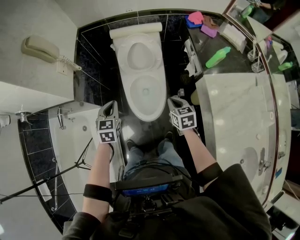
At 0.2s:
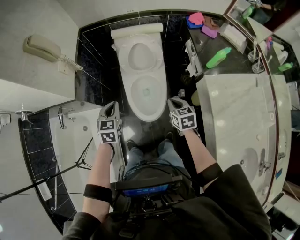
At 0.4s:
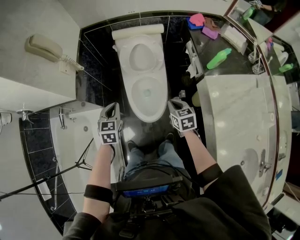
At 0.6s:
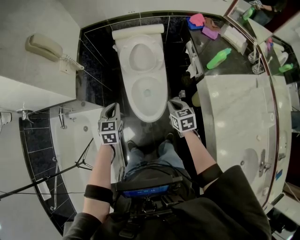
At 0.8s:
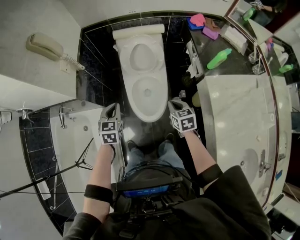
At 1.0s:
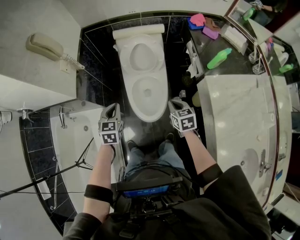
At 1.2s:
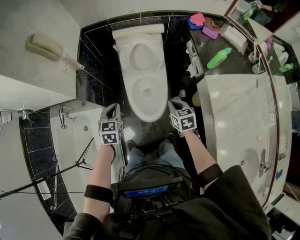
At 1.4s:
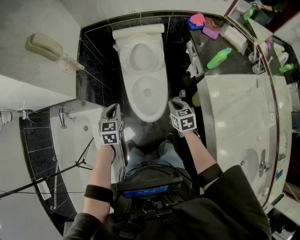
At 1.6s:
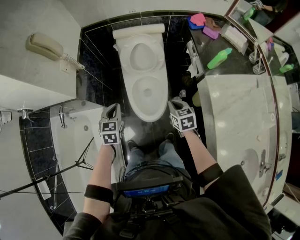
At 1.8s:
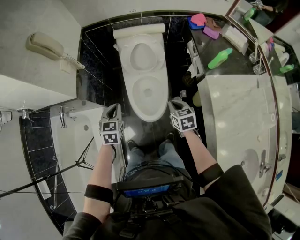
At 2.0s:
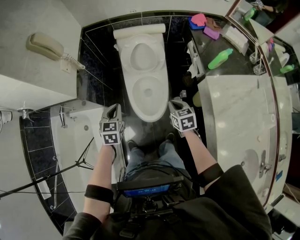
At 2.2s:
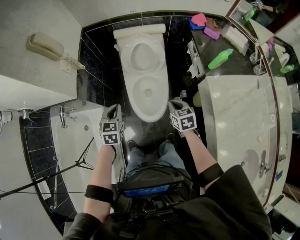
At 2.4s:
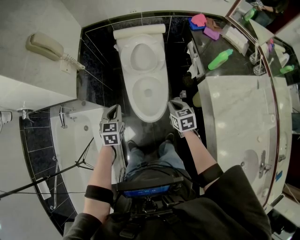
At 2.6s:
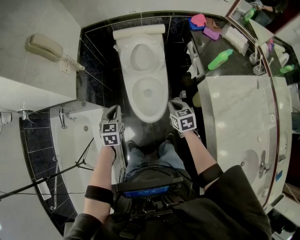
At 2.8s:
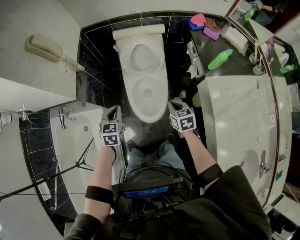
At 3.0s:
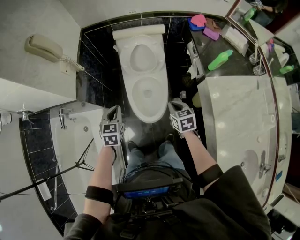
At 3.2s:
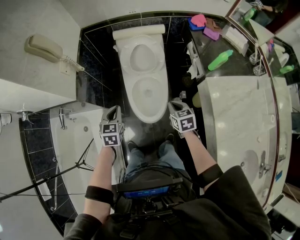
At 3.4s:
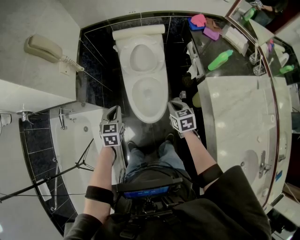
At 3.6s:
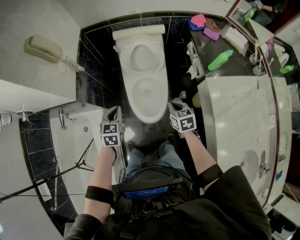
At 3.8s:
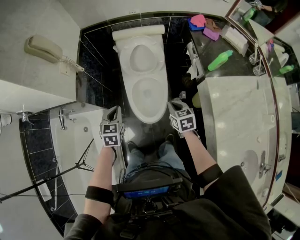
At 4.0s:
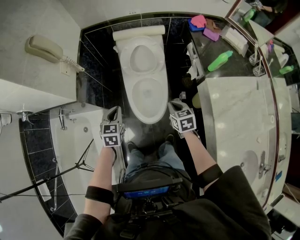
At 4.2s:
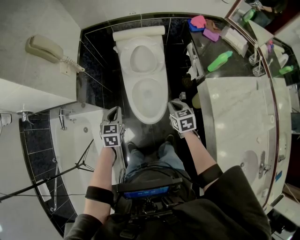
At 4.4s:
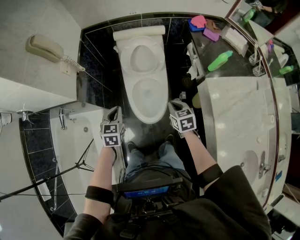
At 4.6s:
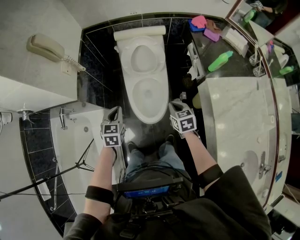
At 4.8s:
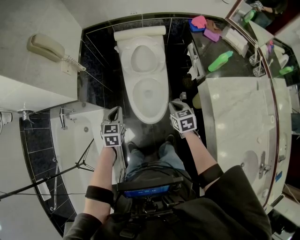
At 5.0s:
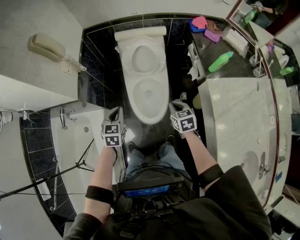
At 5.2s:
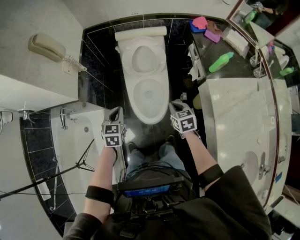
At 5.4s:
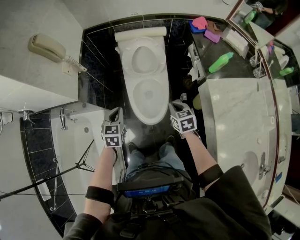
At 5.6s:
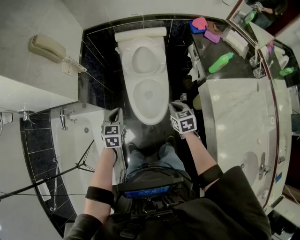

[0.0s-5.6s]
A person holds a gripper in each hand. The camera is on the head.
0.0s to 1.4s: There are only small adjustments of the grippers.
1.4s to 2.8s: Both grippers stay put.
2.8s to 5.6s: The two grippers keep their place.

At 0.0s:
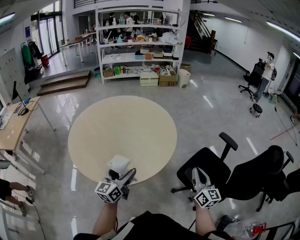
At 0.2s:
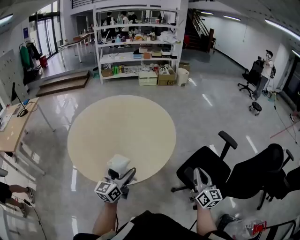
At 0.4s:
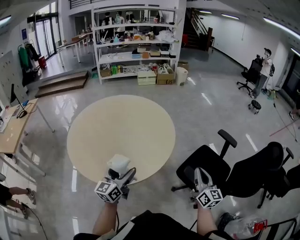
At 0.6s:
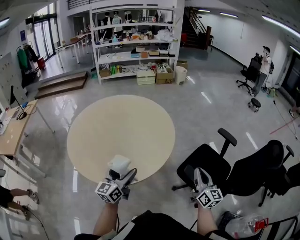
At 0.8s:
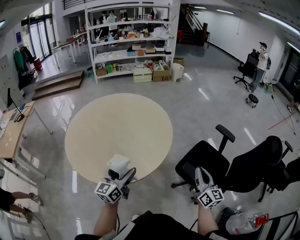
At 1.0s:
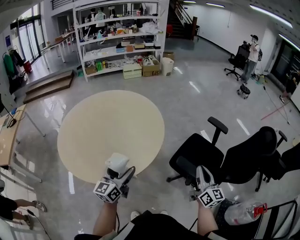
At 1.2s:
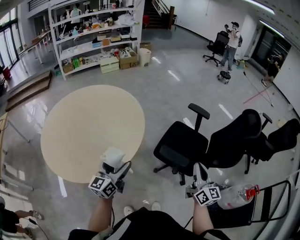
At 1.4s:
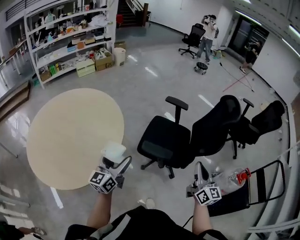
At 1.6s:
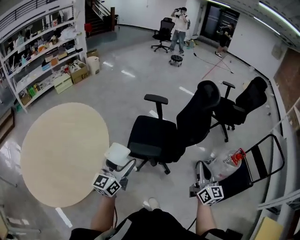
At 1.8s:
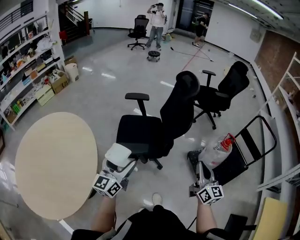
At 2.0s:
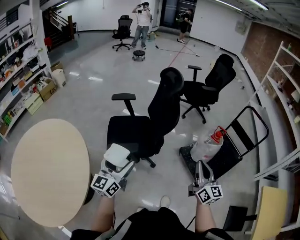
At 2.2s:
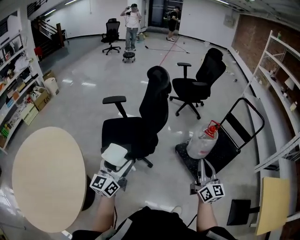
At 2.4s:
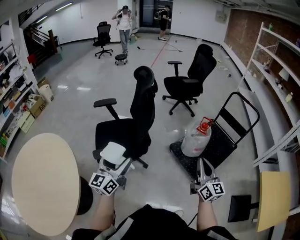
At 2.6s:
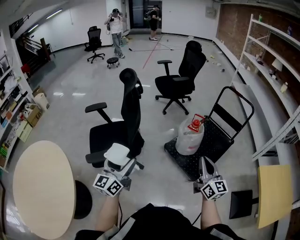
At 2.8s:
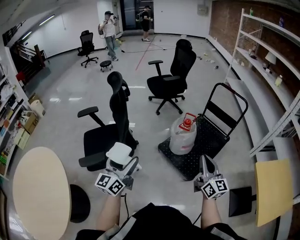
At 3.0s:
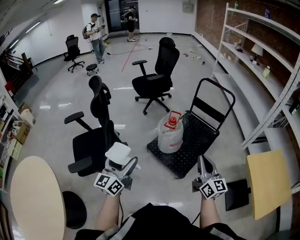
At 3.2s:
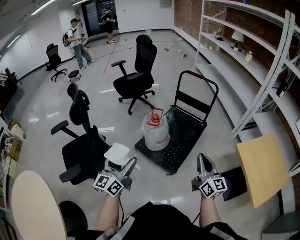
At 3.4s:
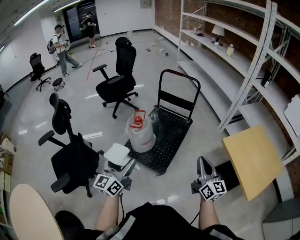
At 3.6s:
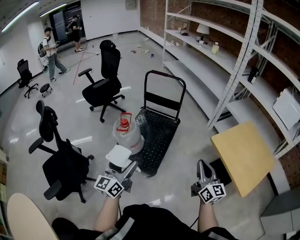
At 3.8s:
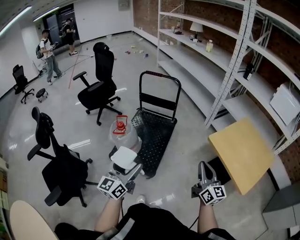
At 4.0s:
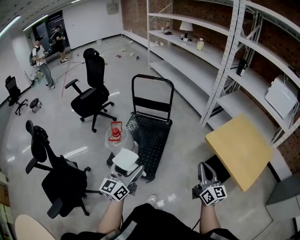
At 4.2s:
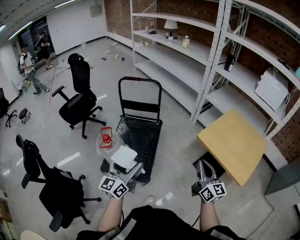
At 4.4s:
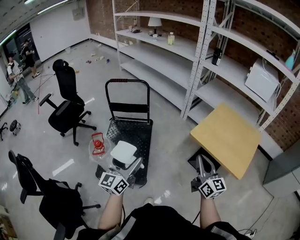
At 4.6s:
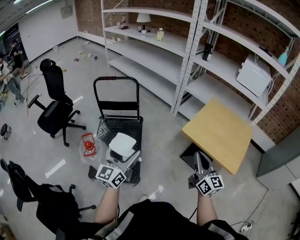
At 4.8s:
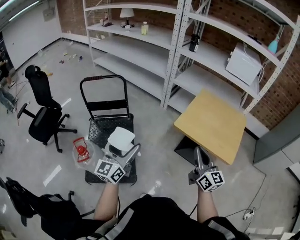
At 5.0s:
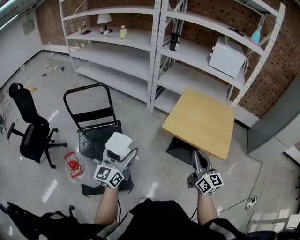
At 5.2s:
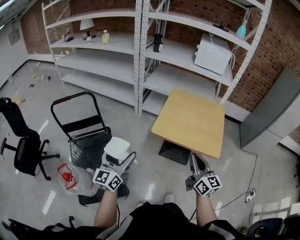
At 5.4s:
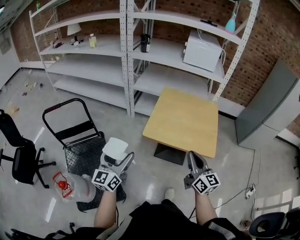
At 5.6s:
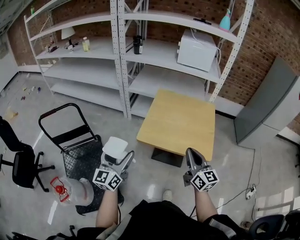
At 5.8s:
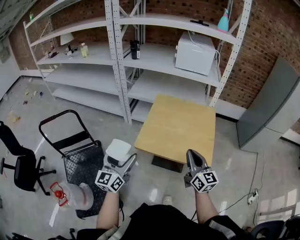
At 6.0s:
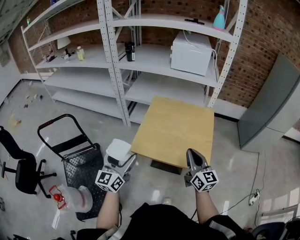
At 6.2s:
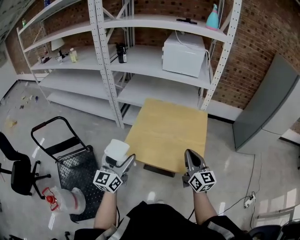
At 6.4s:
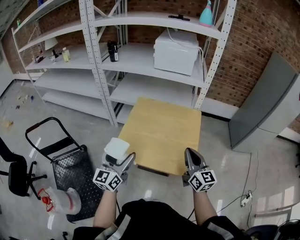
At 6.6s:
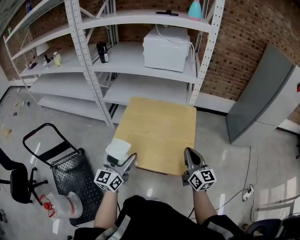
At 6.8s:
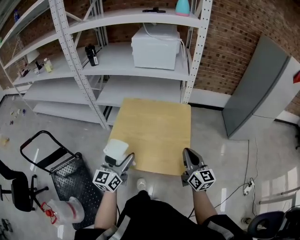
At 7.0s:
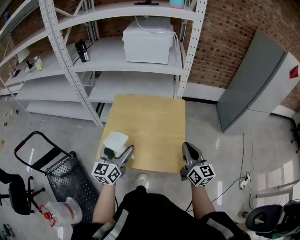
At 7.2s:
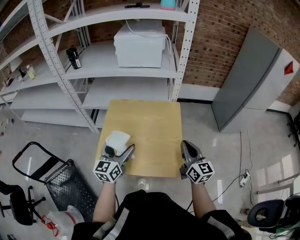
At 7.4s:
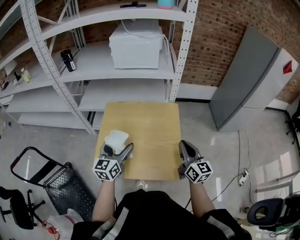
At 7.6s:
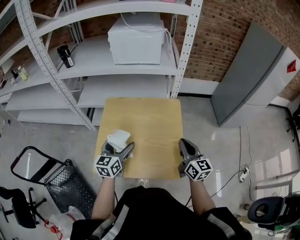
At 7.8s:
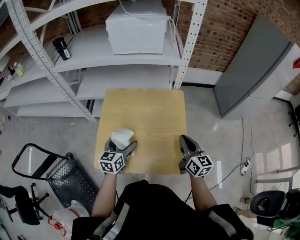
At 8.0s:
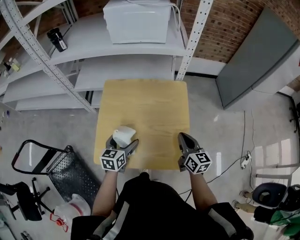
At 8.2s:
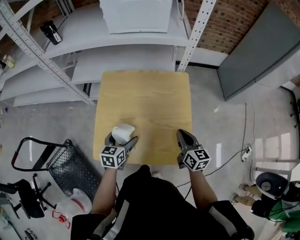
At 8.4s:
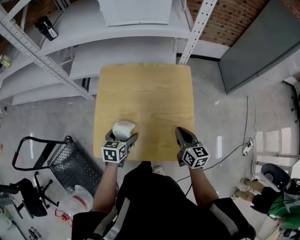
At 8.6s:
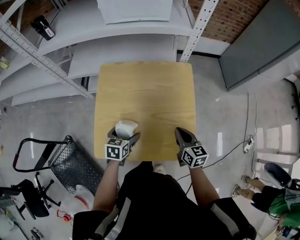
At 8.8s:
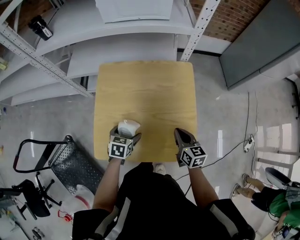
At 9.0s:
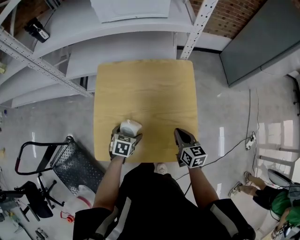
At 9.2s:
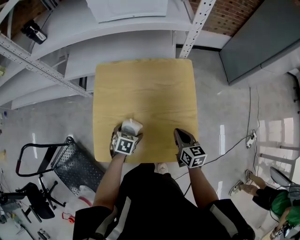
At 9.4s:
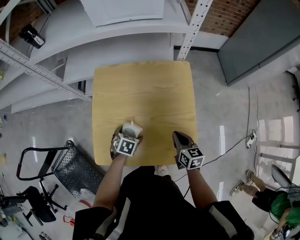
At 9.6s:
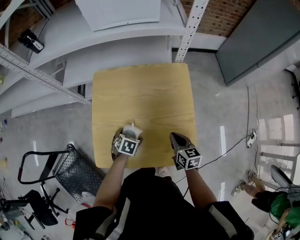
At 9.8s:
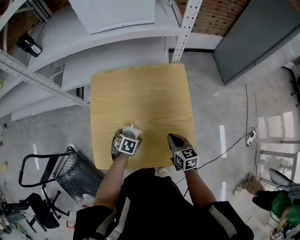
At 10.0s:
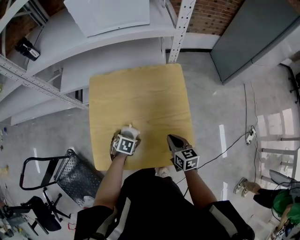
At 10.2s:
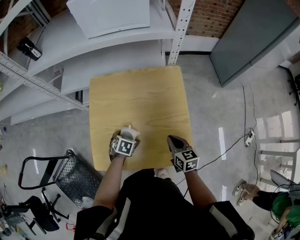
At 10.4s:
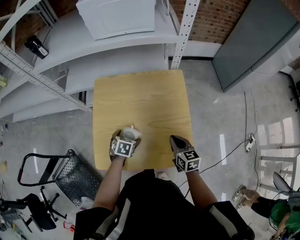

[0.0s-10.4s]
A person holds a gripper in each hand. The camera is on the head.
0.0s to 1.4s: The right gripper shifts by roughly 25 cm, and turns by roughly 30 degrees. The left gripper ends up roughly 20 cm from where it was, and changes its angle by approximately 30 degrees.
1.4s to 3.0s: The pair of grippers is taken some 50 cm. The right gripper changes its angle by some 50 degrees. The left gripper swivels roughly 50 degrees.
3.0s to 4.4s: The right gripper moves approximately 30 cm, and swivels about 40 degrees. The left gripper moves approximately 40 cm, and swivels some 40 degrees.
4.4s to 6.0s: The right gripper ends up roughly 30 cm from where it was, and changes its angle by roughly 30 degrees; the left gripper ends up about 40 cm from where it was, and swivels about 30 degrees.
6.0s to 7.4s: The right gripper goes about 20 cm to the right and forward, while the left gripper shifts some 30 cm forward and to the right, and swivels about 20 degrees.
7.4s to 9.0s: Both grippers travel together downward, some 25 cm. The left gripper angles its fingers downward, by roughly 50 degrees. Meanwhile the right gripper changes its angle by about 30 degrees.
9.0s to 10.4s: The grippers move only a little.

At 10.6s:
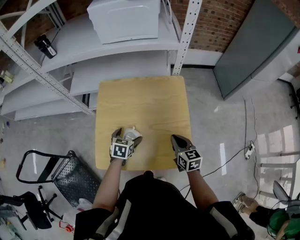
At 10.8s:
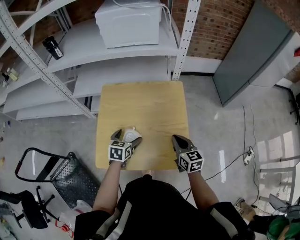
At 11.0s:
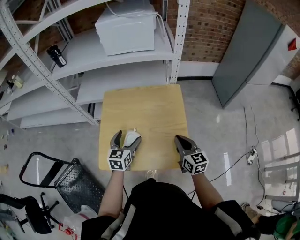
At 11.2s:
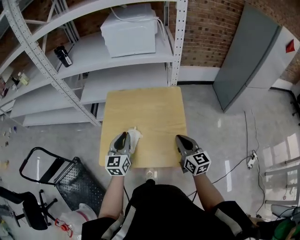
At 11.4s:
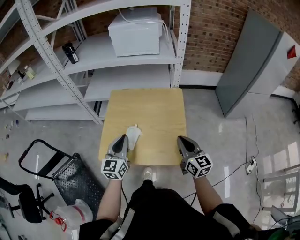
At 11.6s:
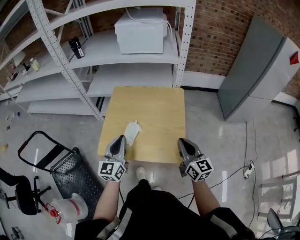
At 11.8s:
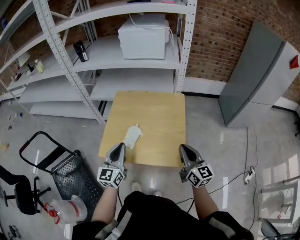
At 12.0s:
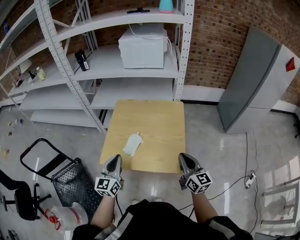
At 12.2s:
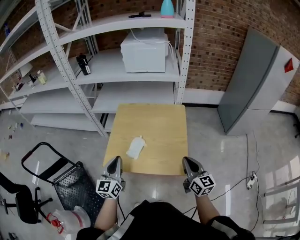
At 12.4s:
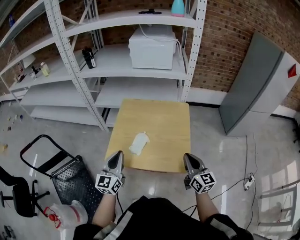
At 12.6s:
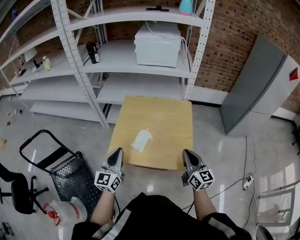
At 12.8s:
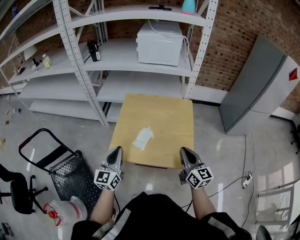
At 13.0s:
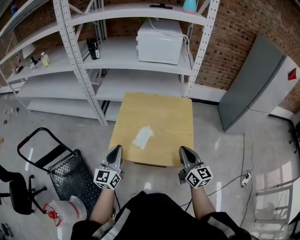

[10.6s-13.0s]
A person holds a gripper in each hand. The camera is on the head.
10.6s to 11.8s: Both grippers move upward and backward, about 25 cm. The right gripper changes its angle by about 30 degrees; the left gripper angles its fingers upward, by roughly 50 degrees, and closes its fingers.
11.8s to 13.0s: The two grippers go about 10 cm to the left.

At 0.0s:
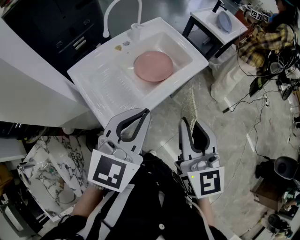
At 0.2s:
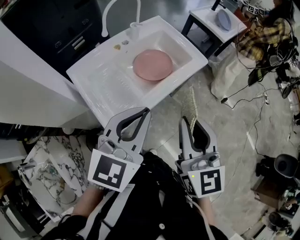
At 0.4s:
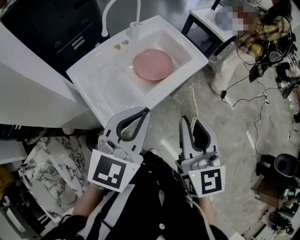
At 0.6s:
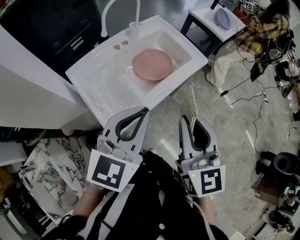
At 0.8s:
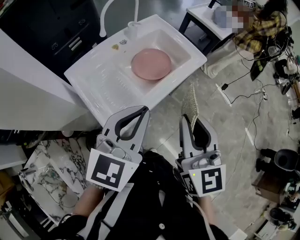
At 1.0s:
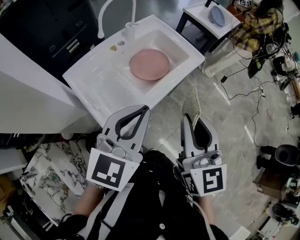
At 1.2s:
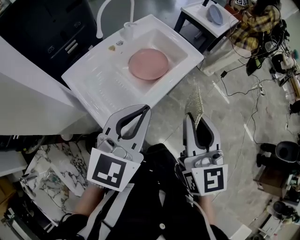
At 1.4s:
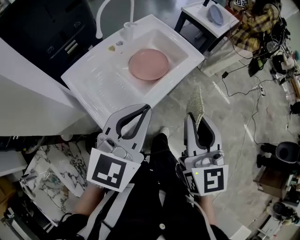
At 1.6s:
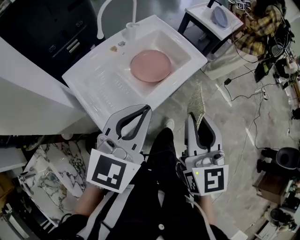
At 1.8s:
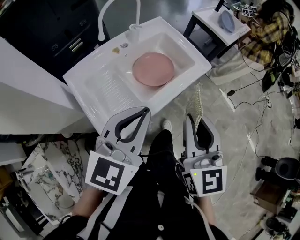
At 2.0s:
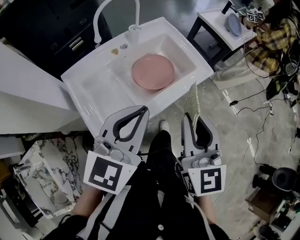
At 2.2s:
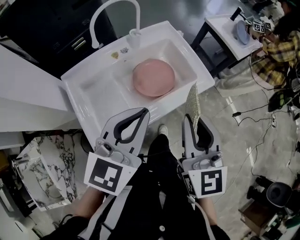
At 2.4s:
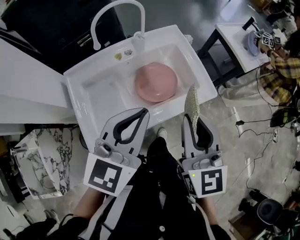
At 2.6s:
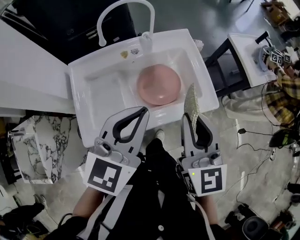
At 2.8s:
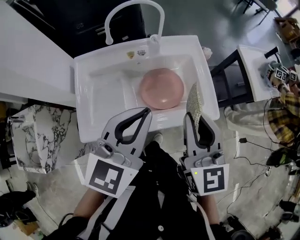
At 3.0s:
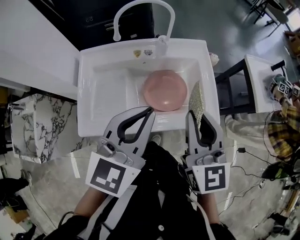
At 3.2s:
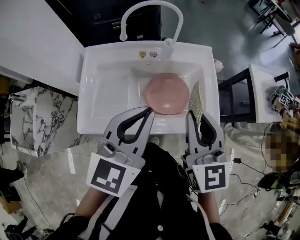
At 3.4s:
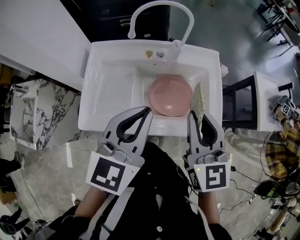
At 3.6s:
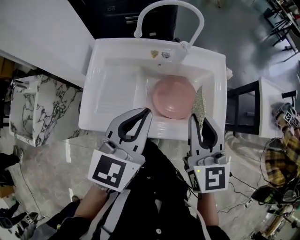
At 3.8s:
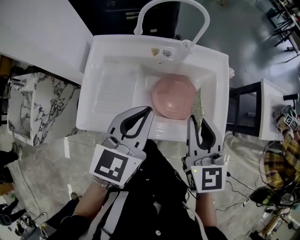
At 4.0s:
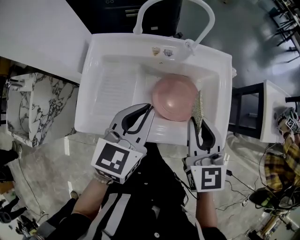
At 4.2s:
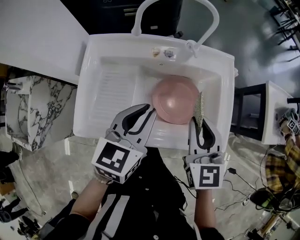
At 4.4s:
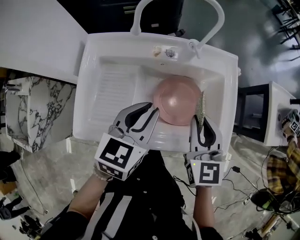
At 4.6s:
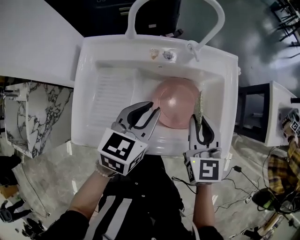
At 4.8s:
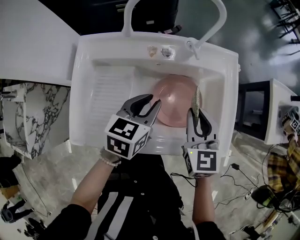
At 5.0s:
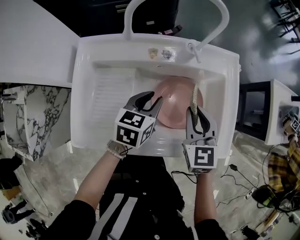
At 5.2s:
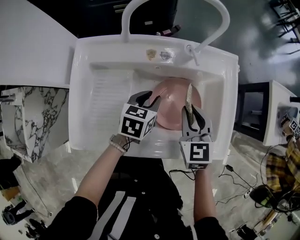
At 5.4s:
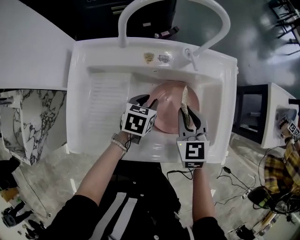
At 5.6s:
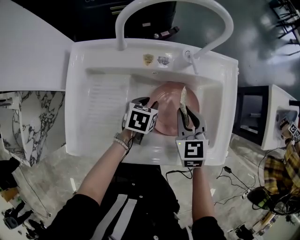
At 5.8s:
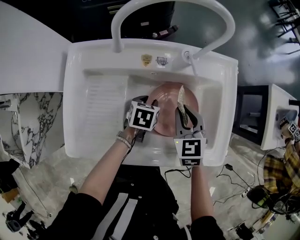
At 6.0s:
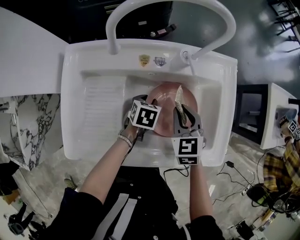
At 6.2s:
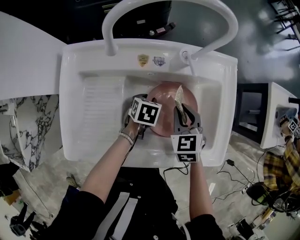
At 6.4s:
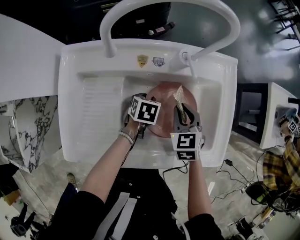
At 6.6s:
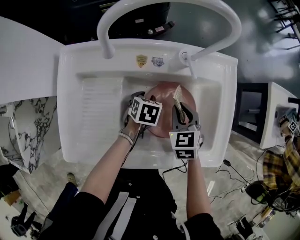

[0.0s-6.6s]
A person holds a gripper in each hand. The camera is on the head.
0.0s to 1.6s: The grippers stay close to where they were, moving slightly.
1.6s to 3.2s: The right gripper moves approximately 25 cm, and swivels some 50 degrees. Meanwhile the left gripper moves about 20 cm, and swivels approximately 40 degrees.
3.2s to 5.0s: The grippers both shift downward and forward by some 30 cm. The left gripper swivels some 30 degrees, and opens; the right gripper changes its angle by roughly 20 degrees.
5.0s to 6.6s: The grippers both shift downward by about 15 cm. The left gripper rotates approximately 30 degrees.
